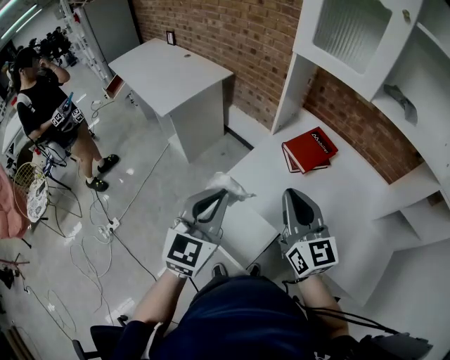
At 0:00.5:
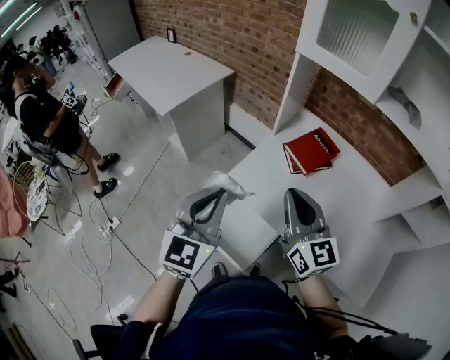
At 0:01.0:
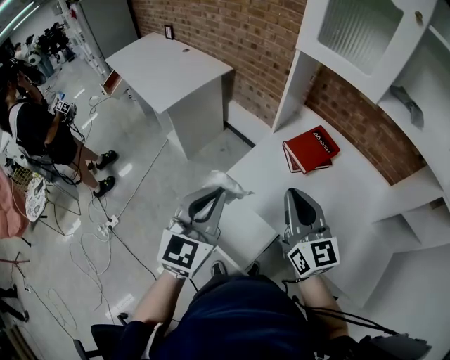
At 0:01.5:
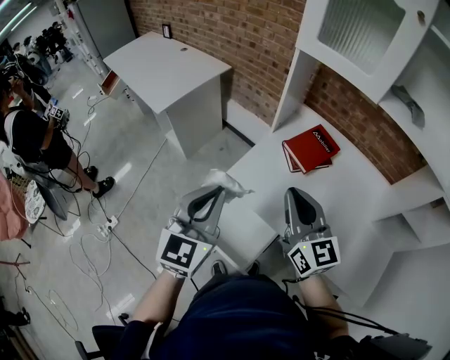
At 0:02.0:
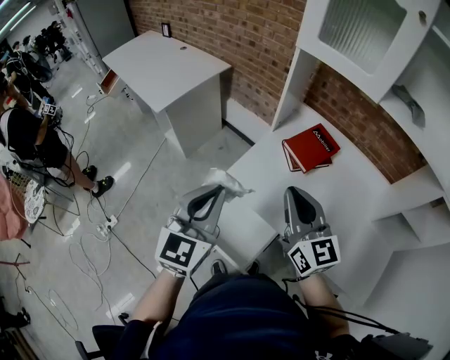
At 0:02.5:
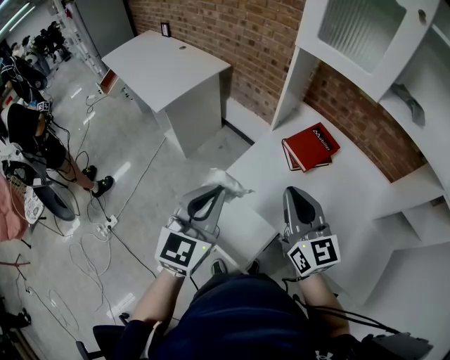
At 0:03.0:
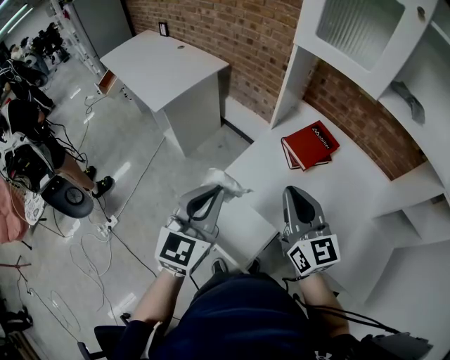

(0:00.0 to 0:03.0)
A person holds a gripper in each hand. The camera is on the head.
0:00.0 - 0:01.5: The grippers stay close to where they were, moving slightly.
0:01.5 - 0:03.0: Both grippers stay about where they are.

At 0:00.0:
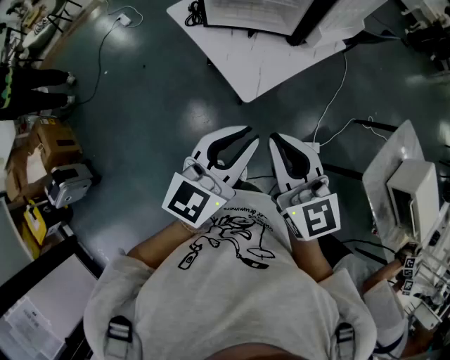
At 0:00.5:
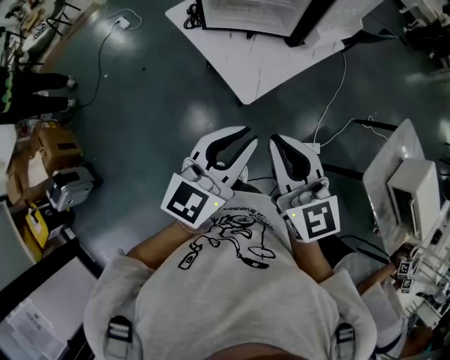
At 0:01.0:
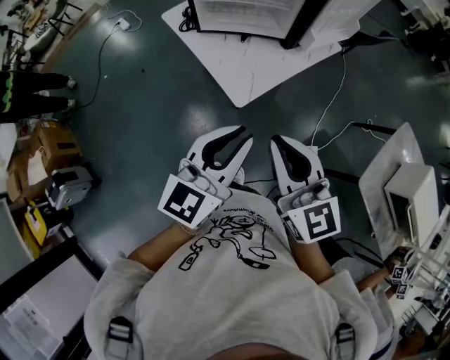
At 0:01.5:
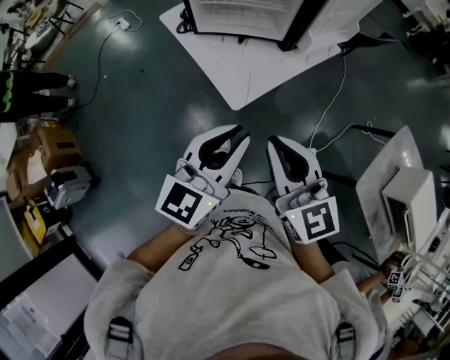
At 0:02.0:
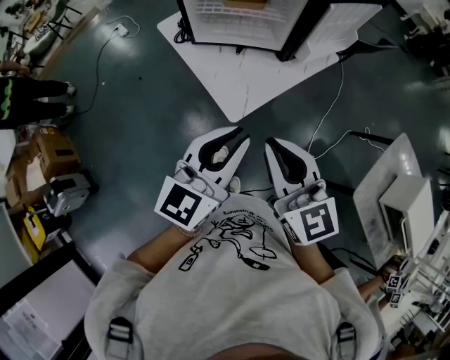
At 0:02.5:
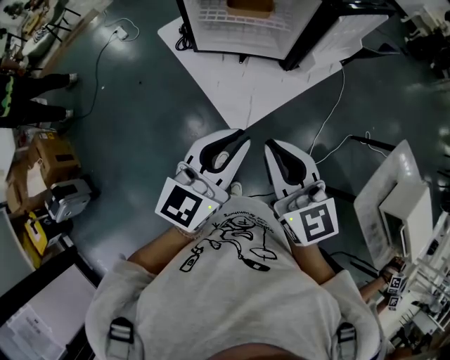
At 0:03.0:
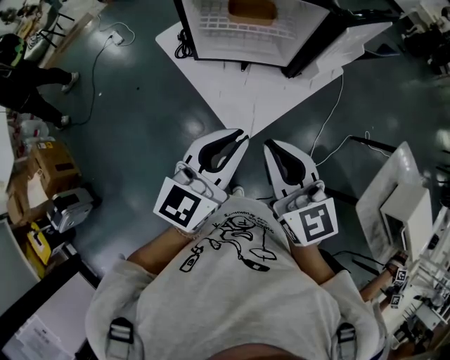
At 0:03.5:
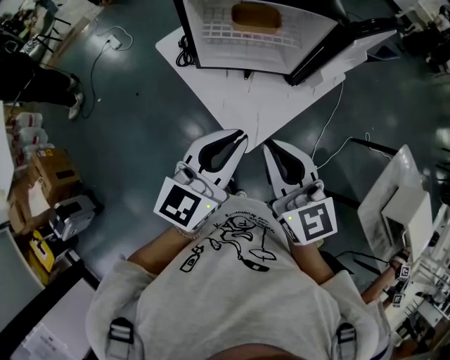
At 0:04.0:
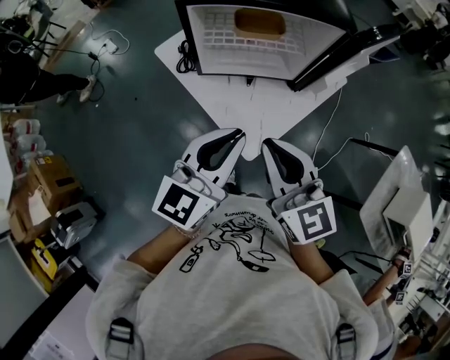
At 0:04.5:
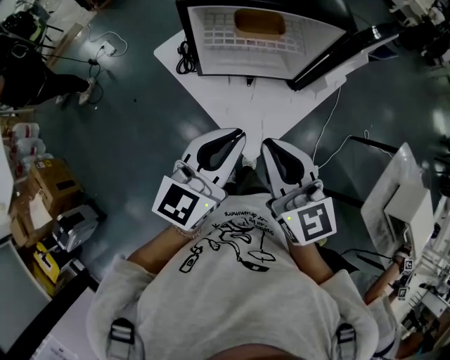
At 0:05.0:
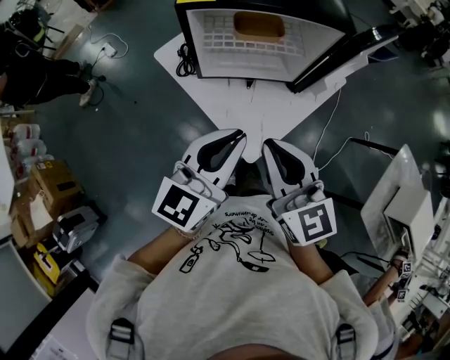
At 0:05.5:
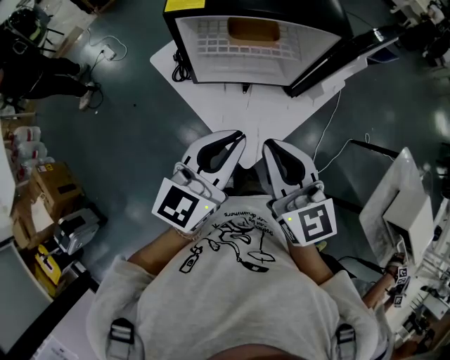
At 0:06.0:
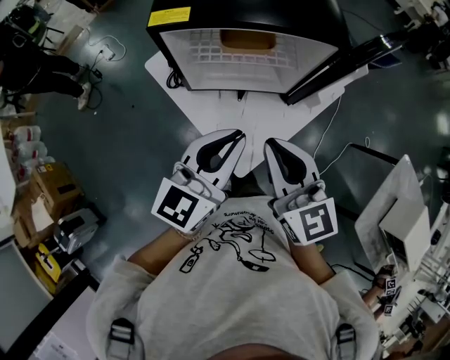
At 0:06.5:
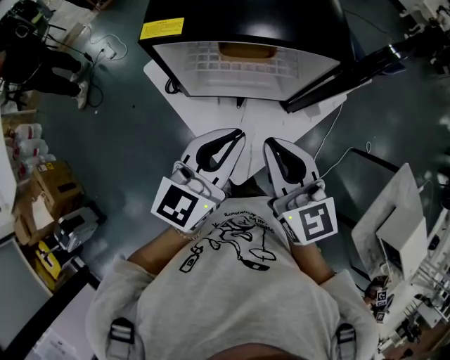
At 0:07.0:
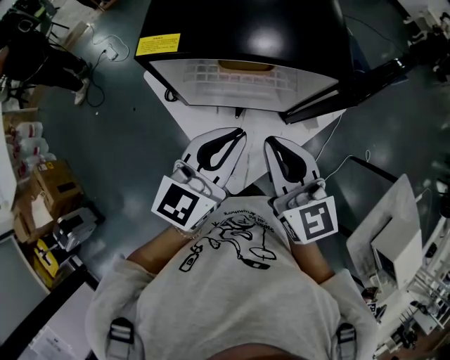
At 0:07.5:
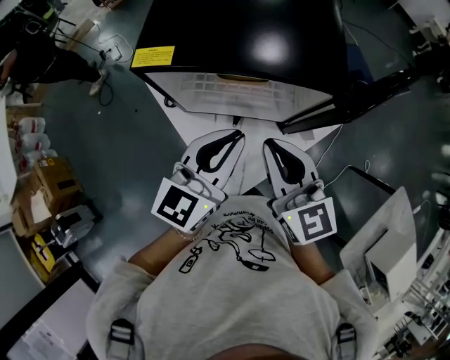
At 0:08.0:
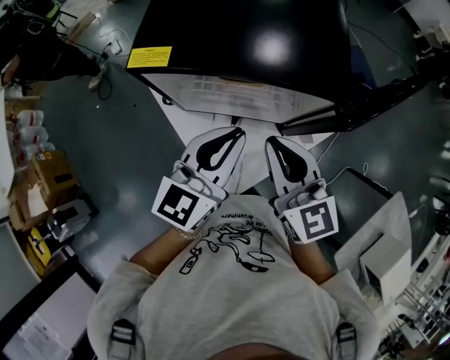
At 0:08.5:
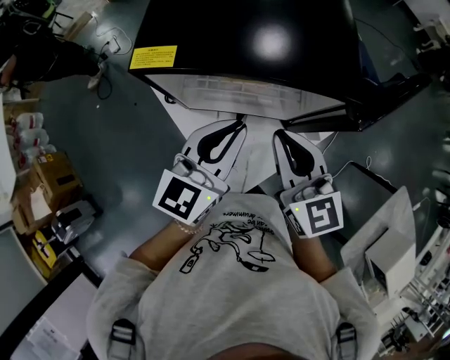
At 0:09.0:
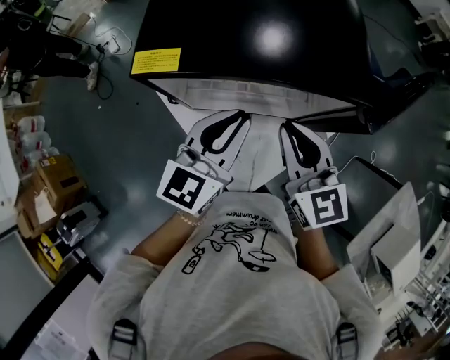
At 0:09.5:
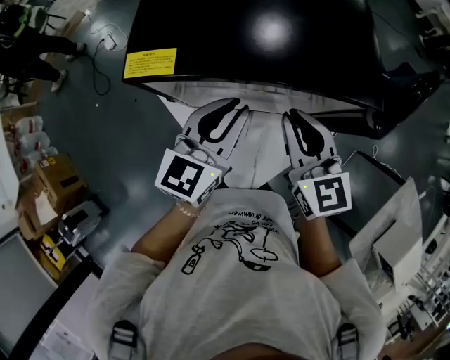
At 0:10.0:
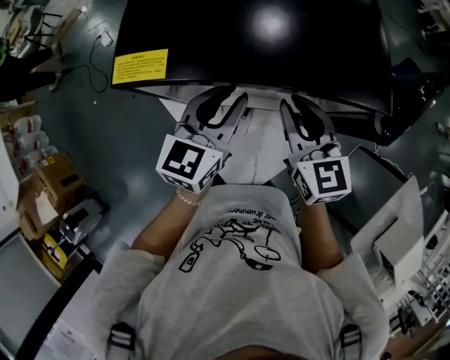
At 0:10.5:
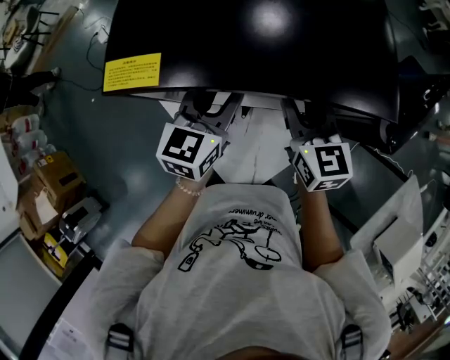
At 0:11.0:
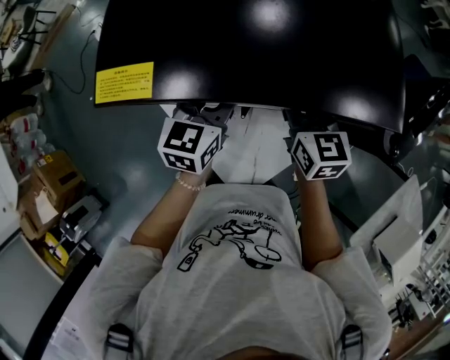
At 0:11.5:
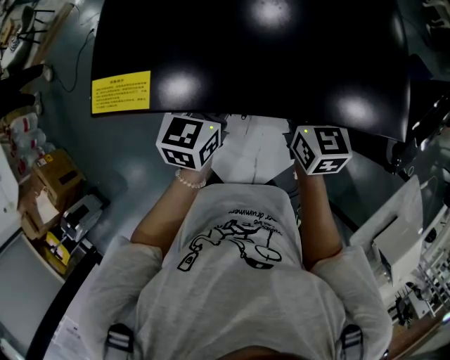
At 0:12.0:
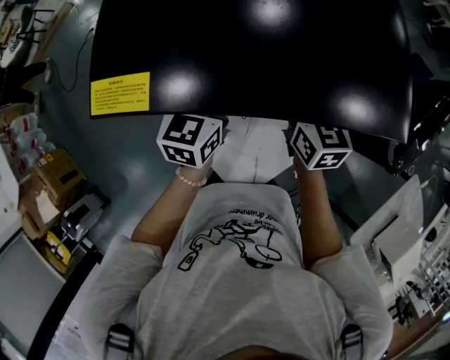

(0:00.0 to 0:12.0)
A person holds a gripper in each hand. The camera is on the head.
0:00.0 - 0:02.0: Both grippers travel together forward, approximately 5 cm.
0:02.0 - 0:04.0: Both grippers move forward and to the left, some 20 cm.
0:04.0 - 0:06.0: Both grippers travel together forward, roughly 10 cm.
0:06.0 - 0:08.0: Both grippers travel together forward, some 15 cm.
0:08.0 - 0:10.0: The grippers both shift forward and downward by approximately 15 cm.
0:10.0 - 0:12.0: The left gripper travels downward and forward by roughly 10 cm, and opens. The right gripper travels forward and downward by roughly 10 cm, and opens up.

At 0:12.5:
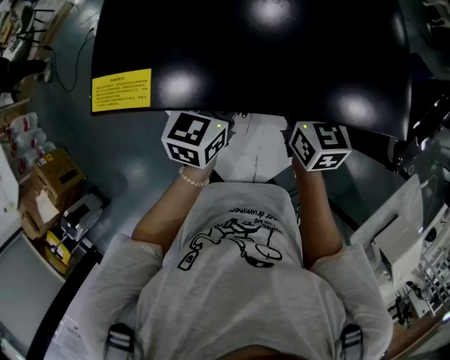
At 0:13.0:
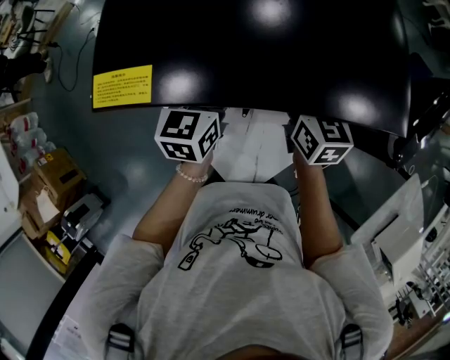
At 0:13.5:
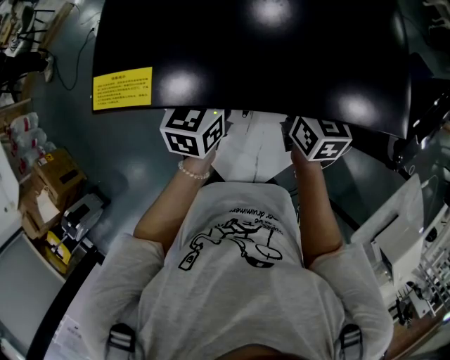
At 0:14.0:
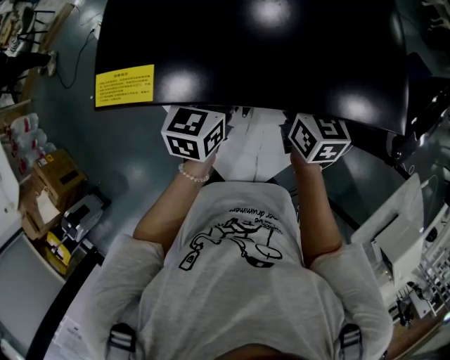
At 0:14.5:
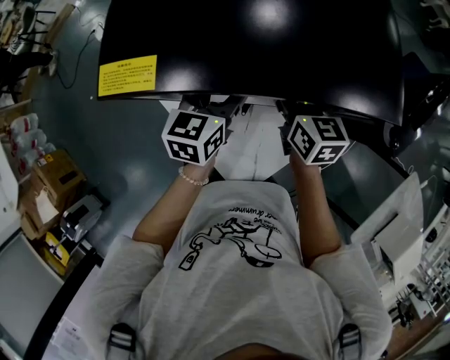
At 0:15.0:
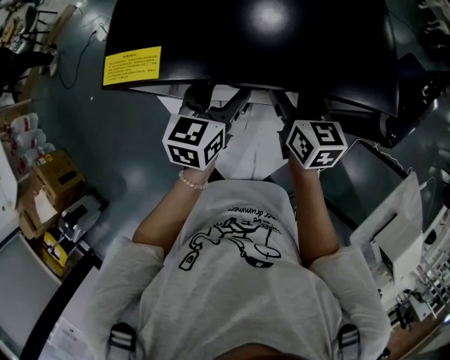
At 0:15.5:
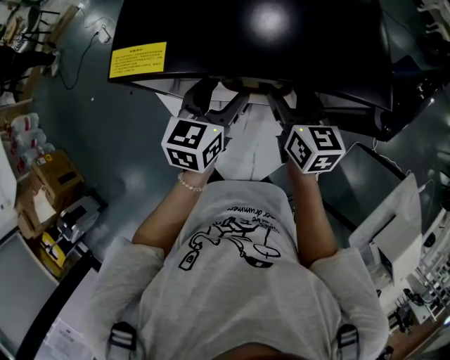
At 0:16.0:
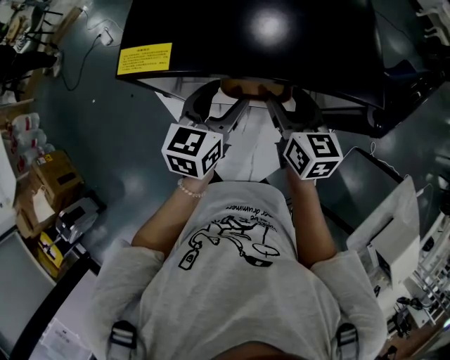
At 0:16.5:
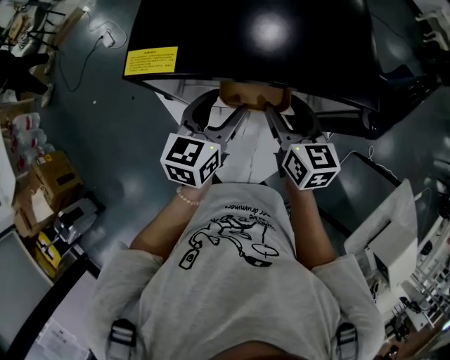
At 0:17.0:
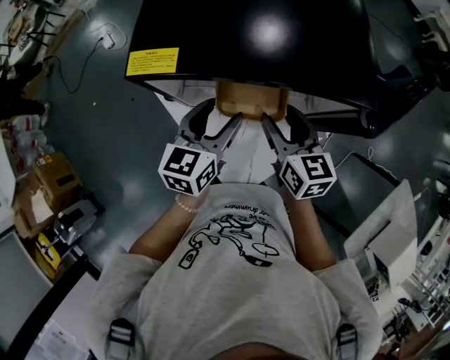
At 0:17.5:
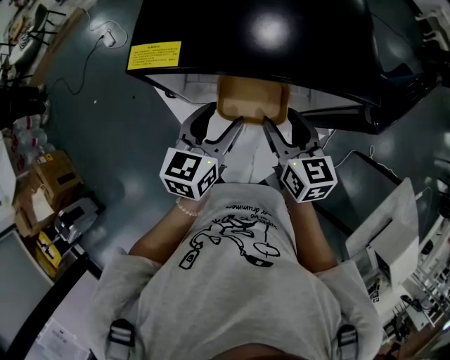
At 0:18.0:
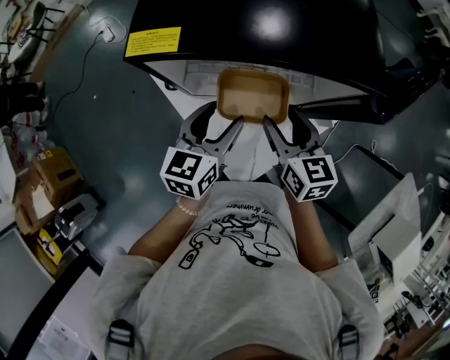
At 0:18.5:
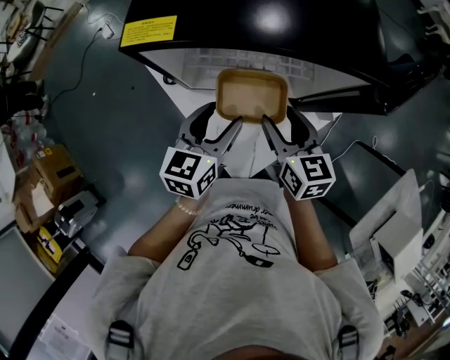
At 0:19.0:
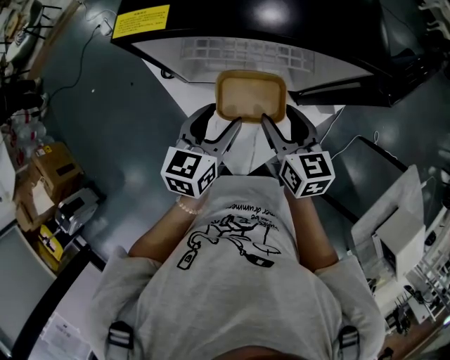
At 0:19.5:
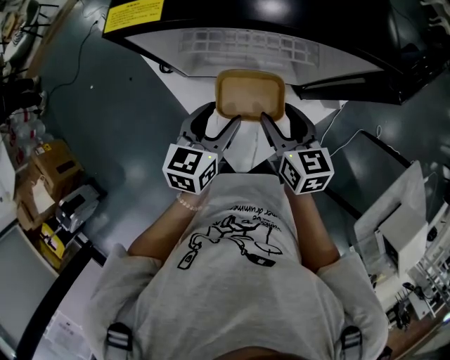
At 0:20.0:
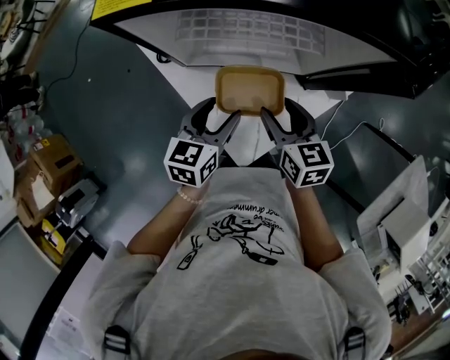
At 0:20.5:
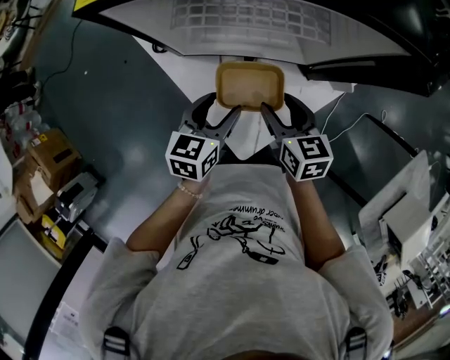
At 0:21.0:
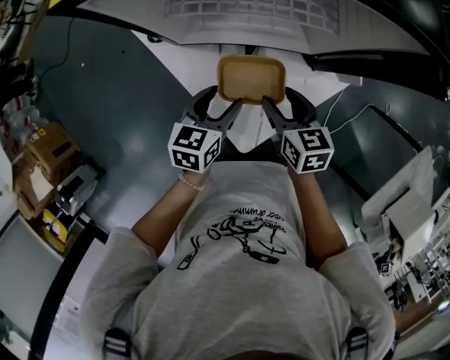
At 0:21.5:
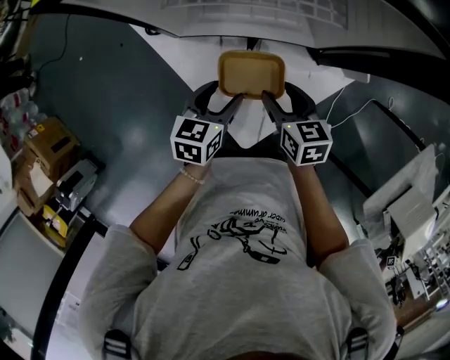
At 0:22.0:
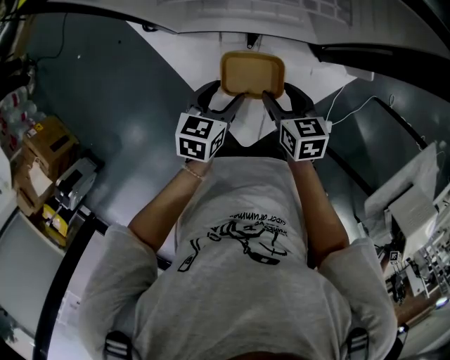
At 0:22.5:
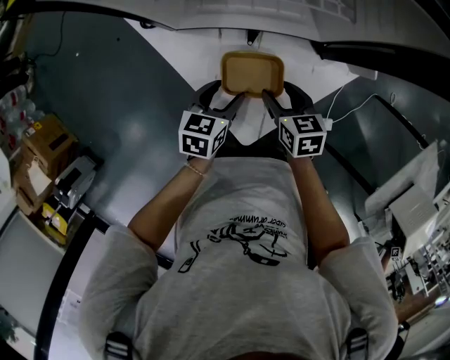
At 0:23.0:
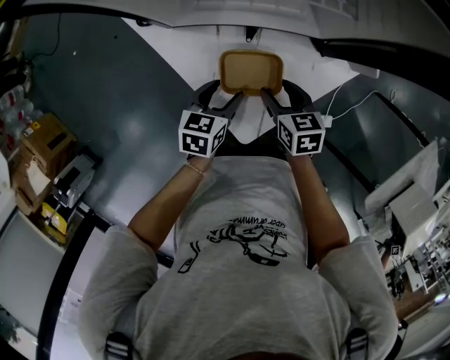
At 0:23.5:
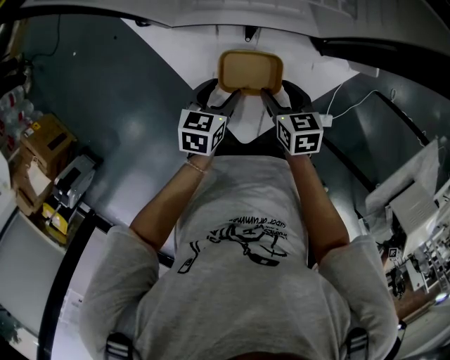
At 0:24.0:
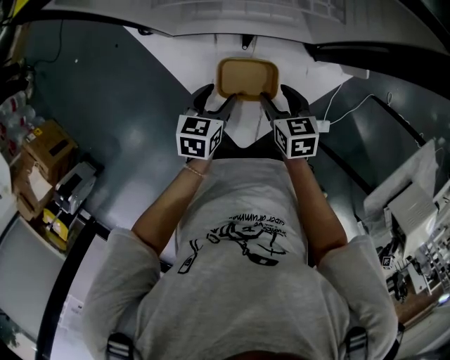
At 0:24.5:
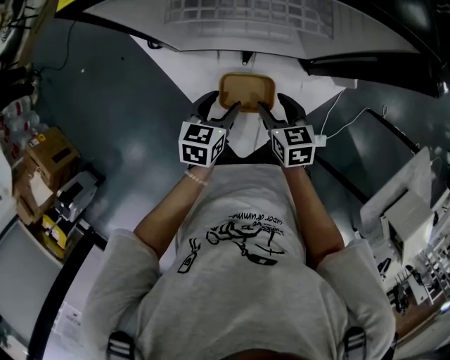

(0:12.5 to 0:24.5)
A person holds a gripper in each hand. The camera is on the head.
0:12.5 - 0:14.5: The grippers move only a little.
0:14.5 - 0:16.5: The right gripper shifts some 5 cm backward. Meanwhile the left gripper shifts roughly 10 cm backward and upward.
0:16.5 - 0:18.5: The grippers both shift backward by some 10 cm.
0:18.5 - 0:20.5: Both grippers travel together downward, about 10 cm.
0:20.5 - 0:22.5: The grippers both shift downward by approximately 10 cm.
0:22.5 - 0:24.5: The grippers make only small movements.
